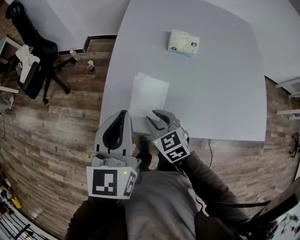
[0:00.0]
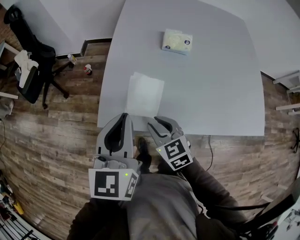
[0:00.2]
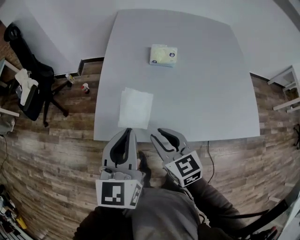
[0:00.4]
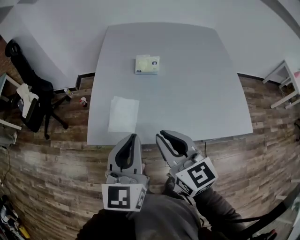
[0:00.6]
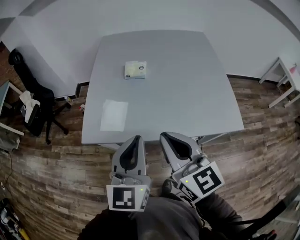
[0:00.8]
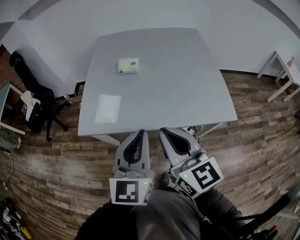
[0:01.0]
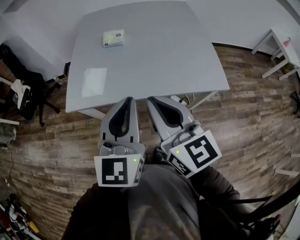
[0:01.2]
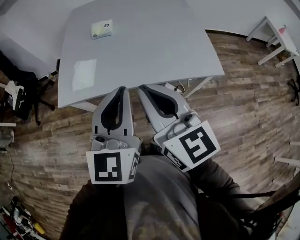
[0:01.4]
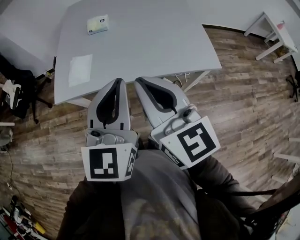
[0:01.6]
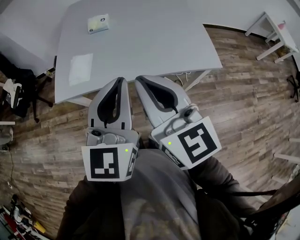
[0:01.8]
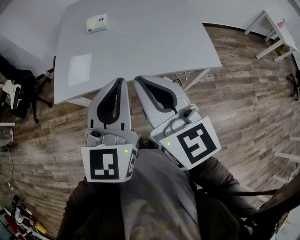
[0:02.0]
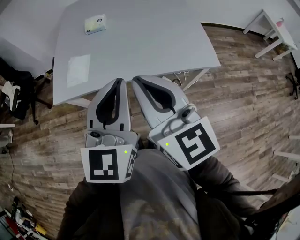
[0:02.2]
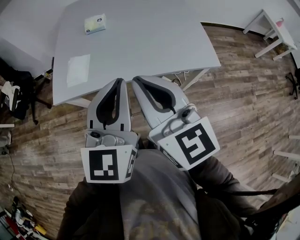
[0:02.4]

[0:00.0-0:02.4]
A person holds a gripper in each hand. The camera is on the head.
0:00.0 to 0:01.2: The right gripper is displaced upward, backward and to the right by approximately 50 cm, tips its fingers upward by some 40 degrees, and closes. Meanwhile the left gripper goes roughly 40 cm to the right and backward, and turns by some 20 degrees.
0:01.2 to 0:02.4: The grippers make only small movements.

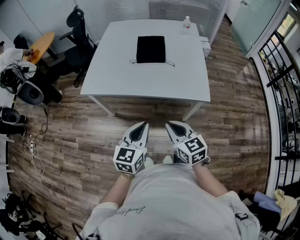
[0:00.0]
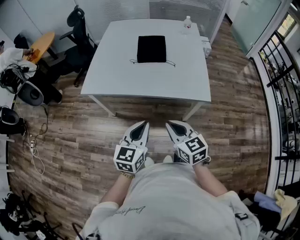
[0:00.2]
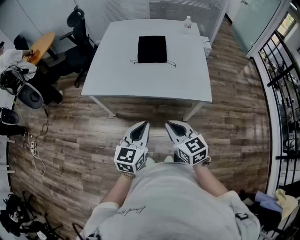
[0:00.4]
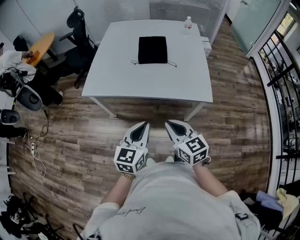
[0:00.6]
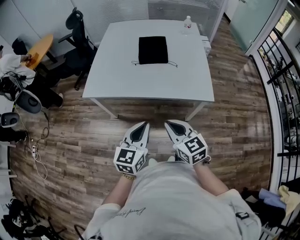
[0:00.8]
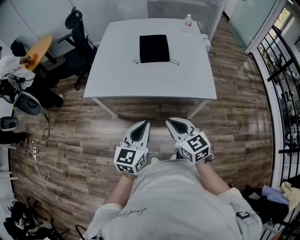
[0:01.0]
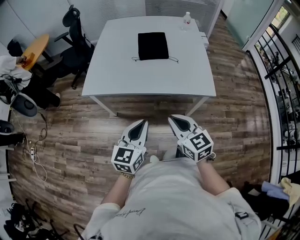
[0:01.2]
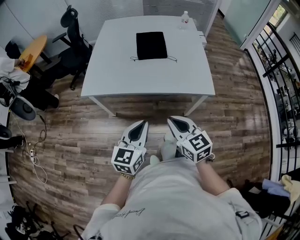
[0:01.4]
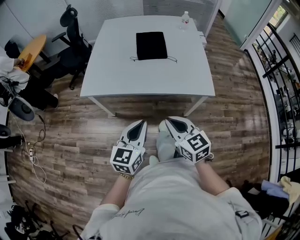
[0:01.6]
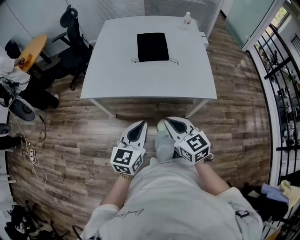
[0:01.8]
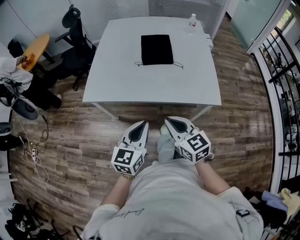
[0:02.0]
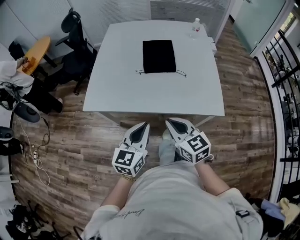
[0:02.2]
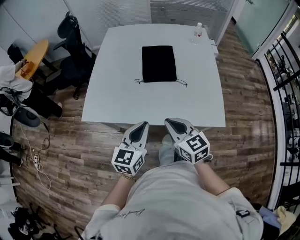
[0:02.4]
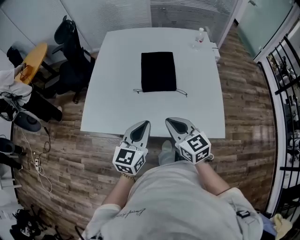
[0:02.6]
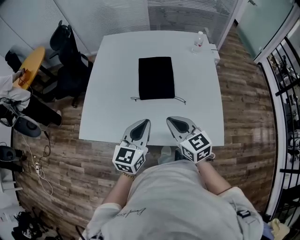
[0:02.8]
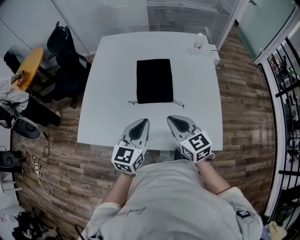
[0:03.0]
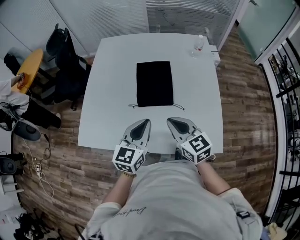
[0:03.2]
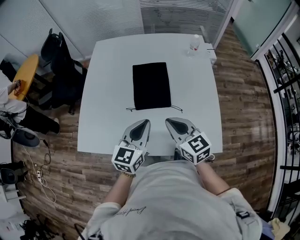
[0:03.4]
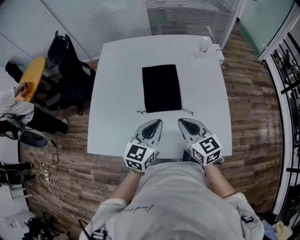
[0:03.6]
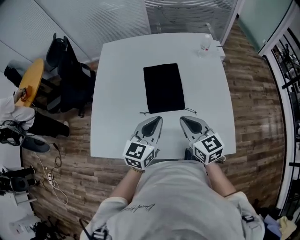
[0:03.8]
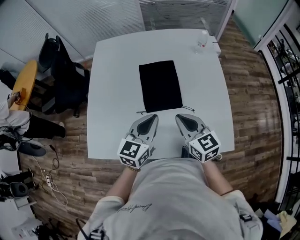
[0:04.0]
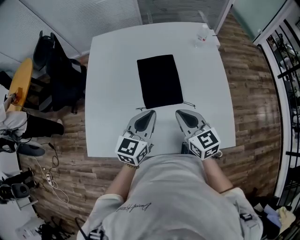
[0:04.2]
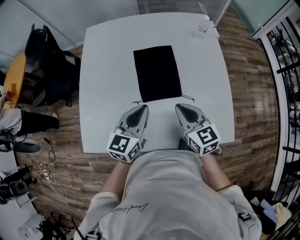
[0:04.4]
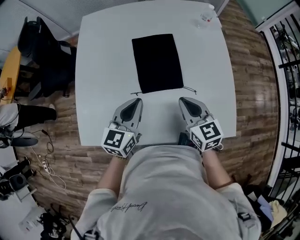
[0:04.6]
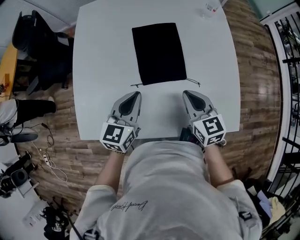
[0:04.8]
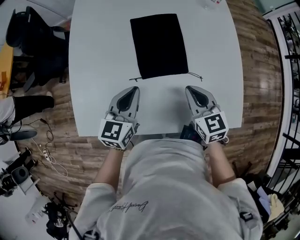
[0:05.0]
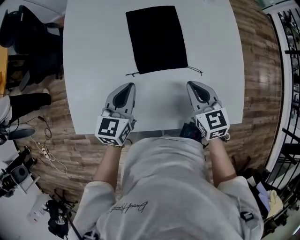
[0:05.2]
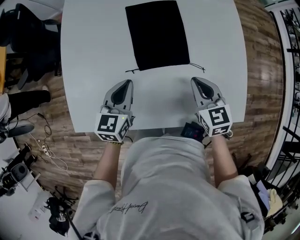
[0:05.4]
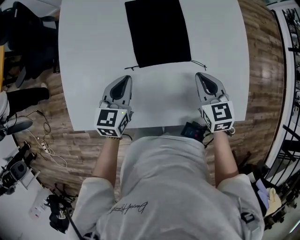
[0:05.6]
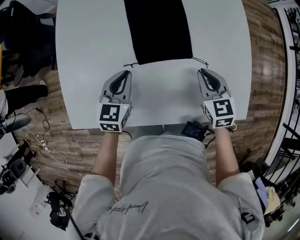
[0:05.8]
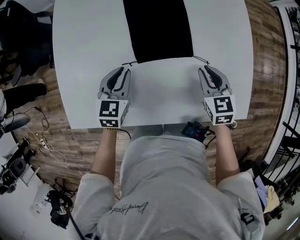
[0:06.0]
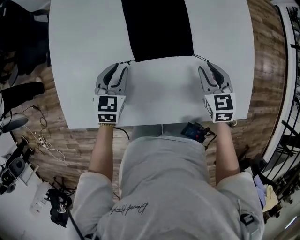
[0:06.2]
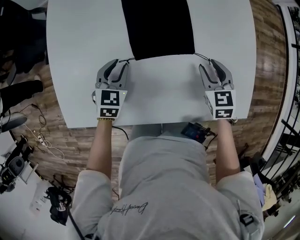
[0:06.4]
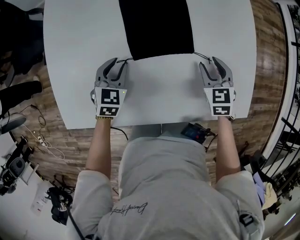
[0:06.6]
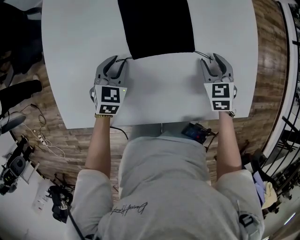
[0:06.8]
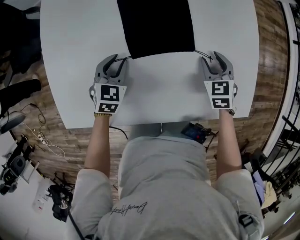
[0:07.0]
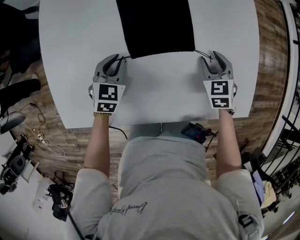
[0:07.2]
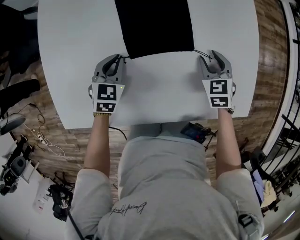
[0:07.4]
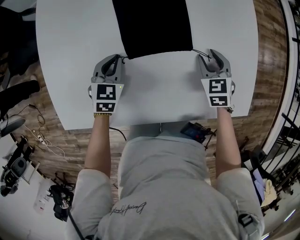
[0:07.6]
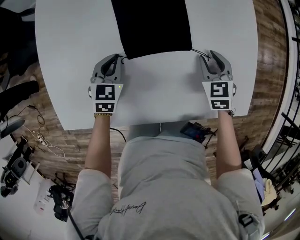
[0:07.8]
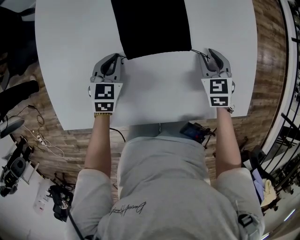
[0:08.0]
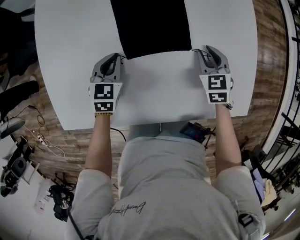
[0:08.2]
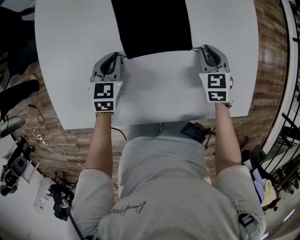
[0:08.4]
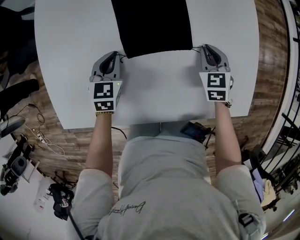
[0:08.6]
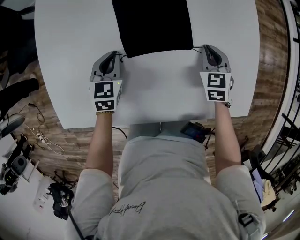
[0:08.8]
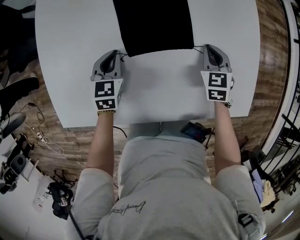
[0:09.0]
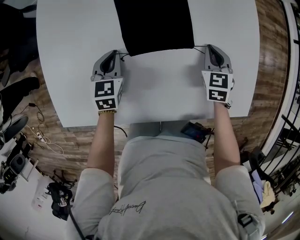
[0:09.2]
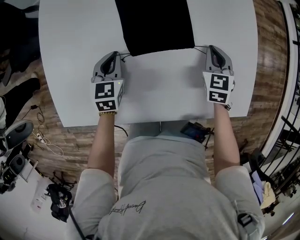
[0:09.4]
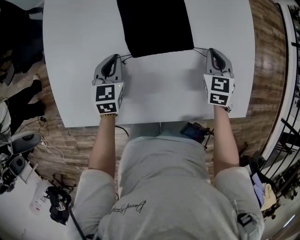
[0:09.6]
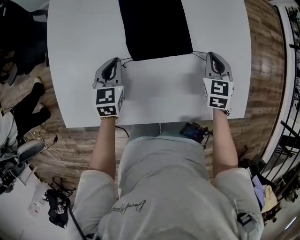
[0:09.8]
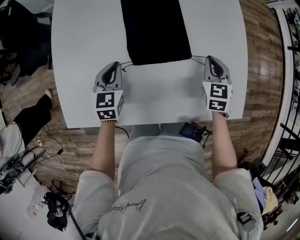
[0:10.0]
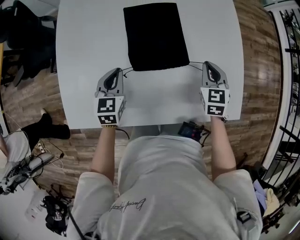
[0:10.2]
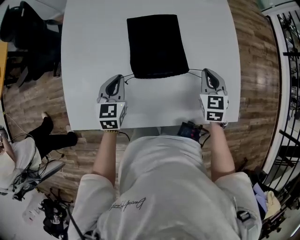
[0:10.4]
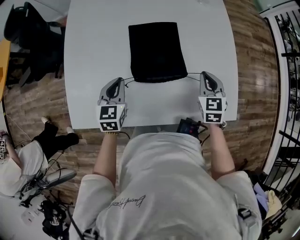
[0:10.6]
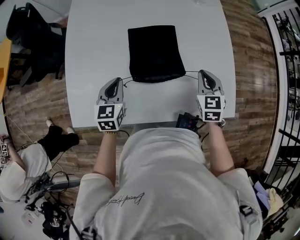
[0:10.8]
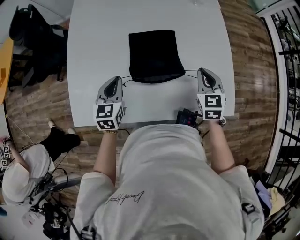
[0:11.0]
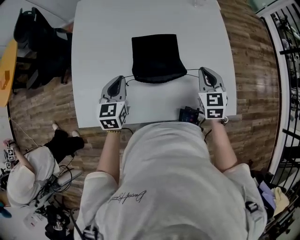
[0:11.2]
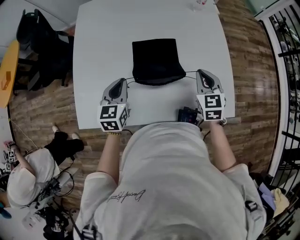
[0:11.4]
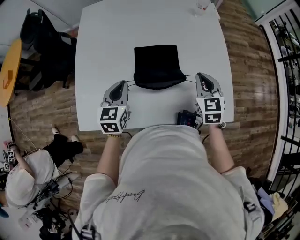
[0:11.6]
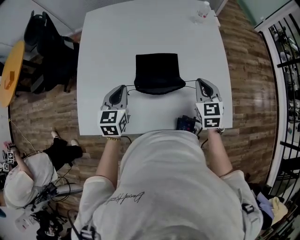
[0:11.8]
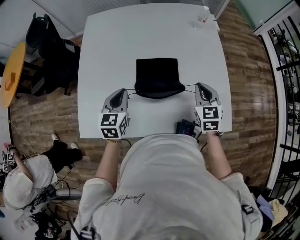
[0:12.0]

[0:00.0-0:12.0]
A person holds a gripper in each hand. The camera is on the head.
0:00.0 to 0:01.6: The grippers both shift to the left by roughly 5 cm.
0:01.6 to 0:03.0: The grippers both shift forward by approximately 35 cm.
0:03.0 to 0:04.4: The two grippers go roughly 10 cm forward.
0:04.4 to 0:06.0: The right gripper travels downward and to the right by roughly 15 cm, and changes its angle by about 20 degrees. Meanwhile the left gripper is displaced downward by about 15 cm, and swivels about 20 degrees.
0:06.0 to 0:07.6: The two grippers go about 5 cm downward. The right gripper opens.
0:07.6 to 0:09.0: The right gripper closes up.
0:09.0 to 0:10.4: Both grippers travel together upward, some 10 cm.
0:10.4 to 0:12.0: Both grippers travel together upward, approximately 10 cm.

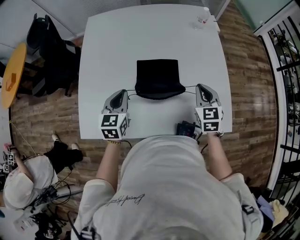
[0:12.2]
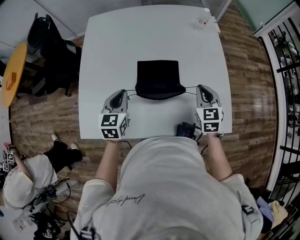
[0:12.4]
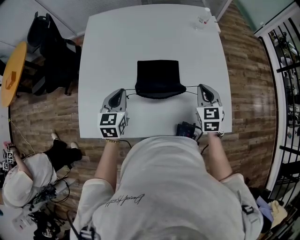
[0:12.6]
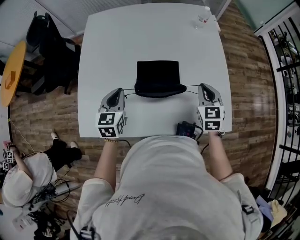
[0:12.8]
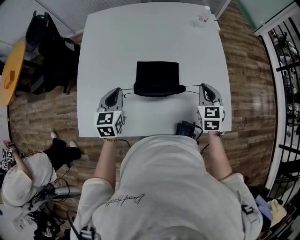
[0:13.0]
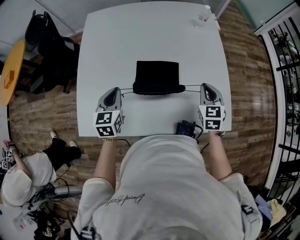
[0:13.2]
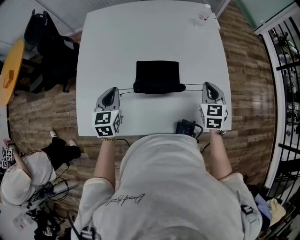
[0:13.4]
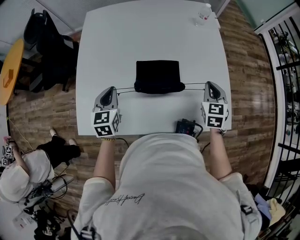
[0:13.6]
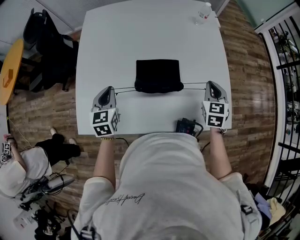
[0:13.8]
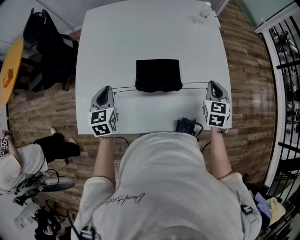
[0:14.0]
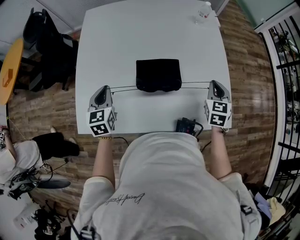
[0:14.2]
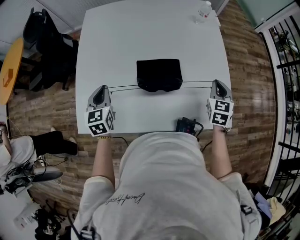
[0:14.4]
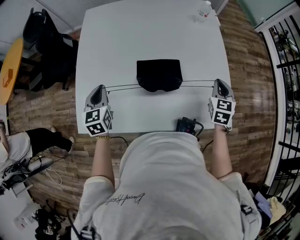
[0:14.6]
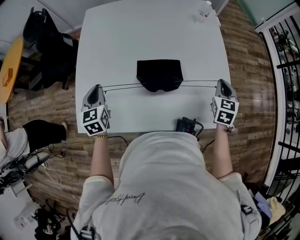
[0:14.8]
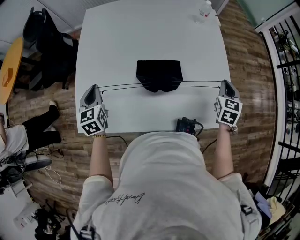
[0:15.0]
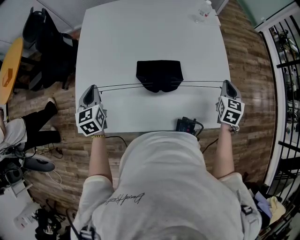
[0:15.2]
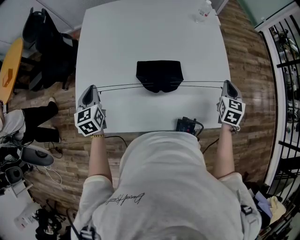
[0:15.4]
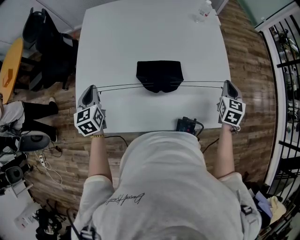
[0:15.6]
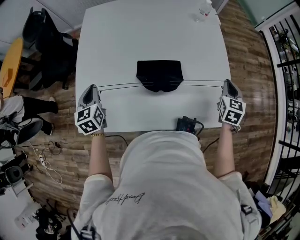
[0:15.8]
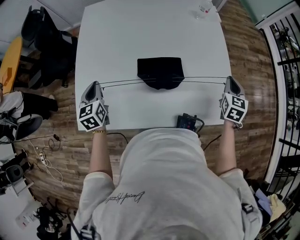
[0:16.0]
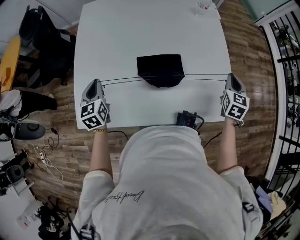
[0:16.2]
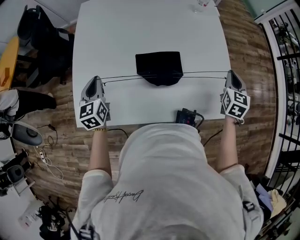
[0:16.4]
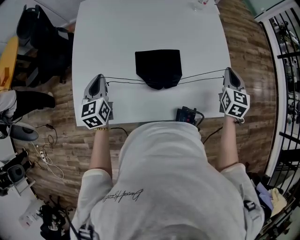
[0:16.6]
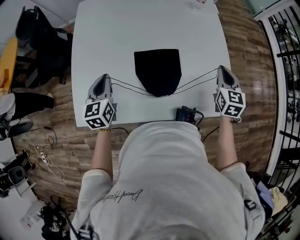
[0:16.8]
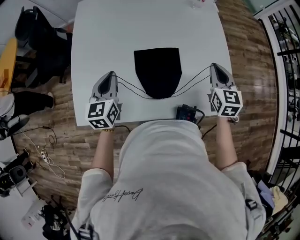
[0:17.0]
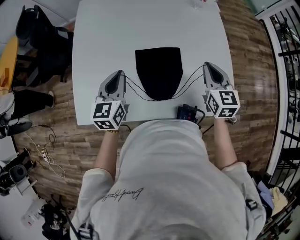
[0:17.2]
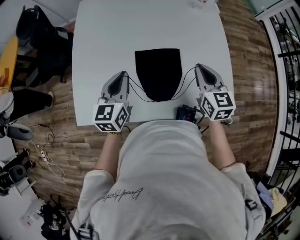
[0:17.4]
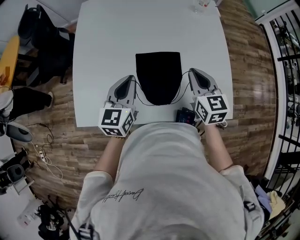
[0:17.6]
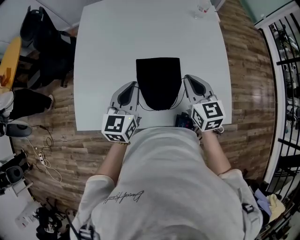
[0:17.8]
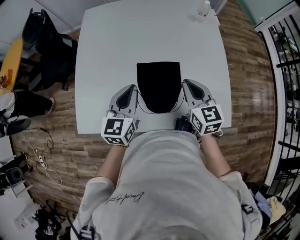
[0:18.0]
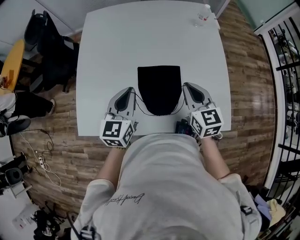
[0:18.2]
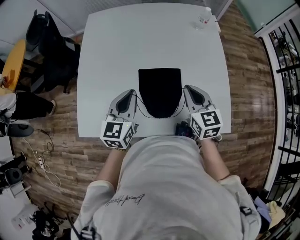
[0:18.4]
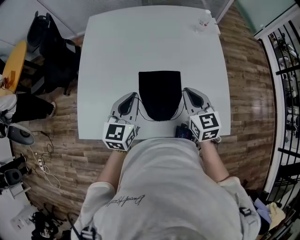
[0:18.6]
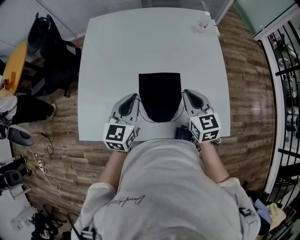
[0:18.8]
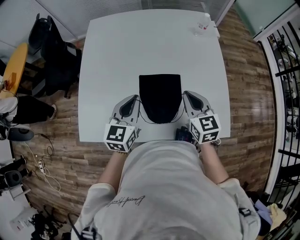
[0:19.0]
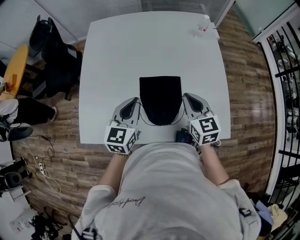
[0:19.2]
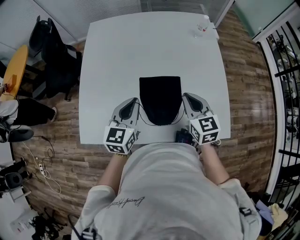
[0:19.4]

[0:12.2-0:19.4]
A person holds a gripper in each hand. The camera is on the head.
0:12.2 to 0:13.6: The grippers stay close to where they were, moving slightly.
0:13.6 to 0:15.0: The right gripper moves to the right, roughly 10 cm. Meanwhile the left gripper is displaced to the left by roughly 10 cm.
0:15.0 to 0:16.6: The grippers move only a little.
0:16.6 to 0:18.0: The right gripper travels to the left by roughly 20 cm, and turns by approximately 30 degrees. Meanwhile the left gripper moves to the right, about 15 cm.
0:18.0 to 0:19.4: Neither gripper changes place.

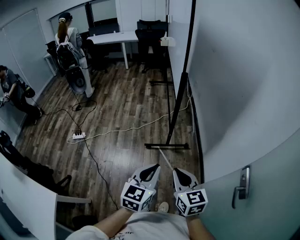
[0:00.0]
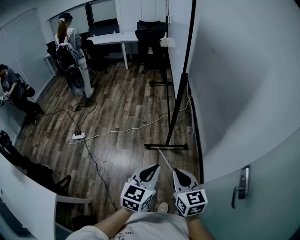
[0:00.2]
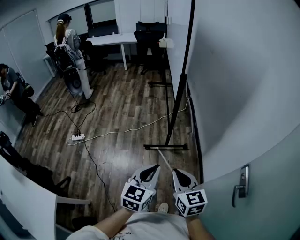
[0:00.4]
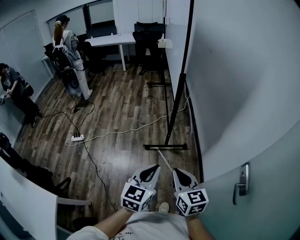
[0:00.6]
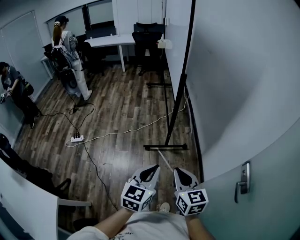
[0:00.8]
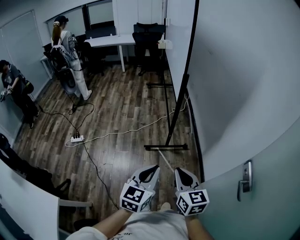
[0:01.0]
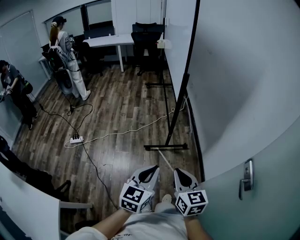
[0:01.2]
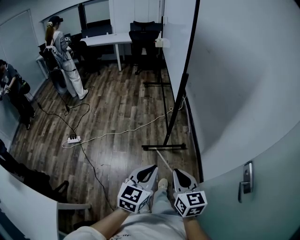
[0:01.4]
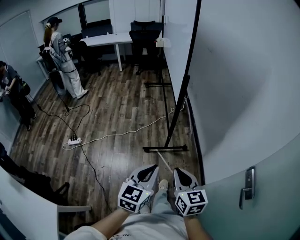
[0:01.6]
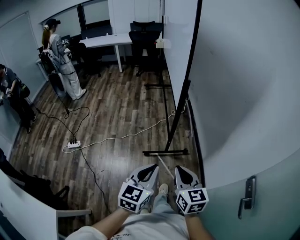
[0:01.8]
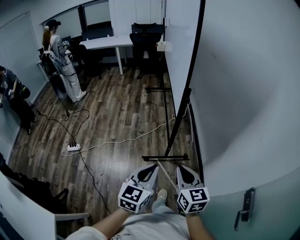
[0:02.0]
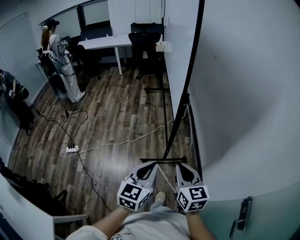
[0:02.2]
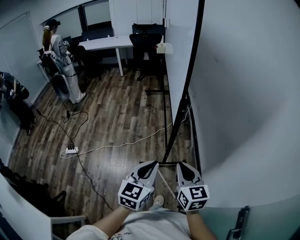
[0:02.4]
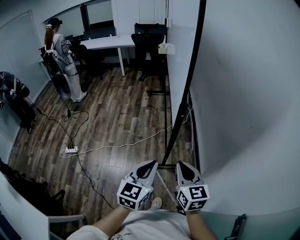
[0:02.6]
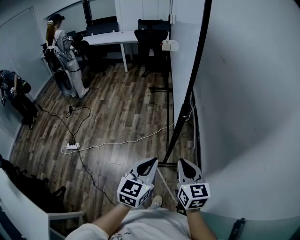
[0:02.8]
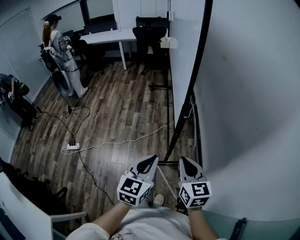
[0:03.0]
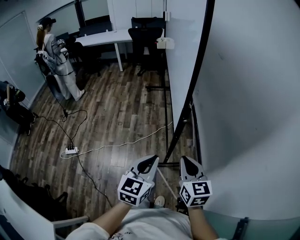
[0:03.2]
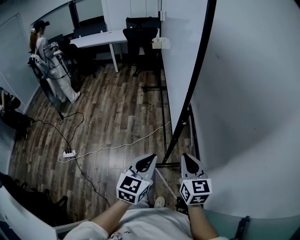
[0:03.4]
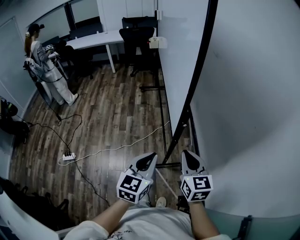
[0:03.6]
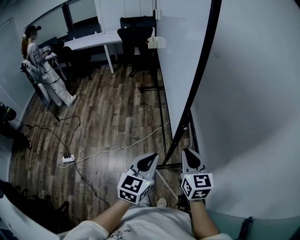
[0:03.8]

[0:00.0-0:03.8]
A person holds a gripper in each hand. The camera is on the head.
0:00.0 to 0:01.2: The left gripper goes some 5 cm to the left.
0:01.2 to 0:02.6: Both grippers travel together forward, approximately 30 cm.
0:02.6 to 0:03.8: The grippers both shift forward by about 15 cm.
